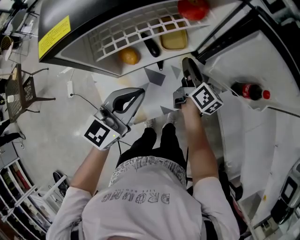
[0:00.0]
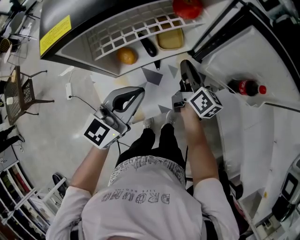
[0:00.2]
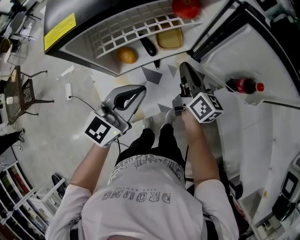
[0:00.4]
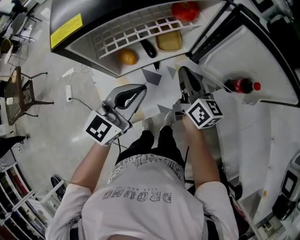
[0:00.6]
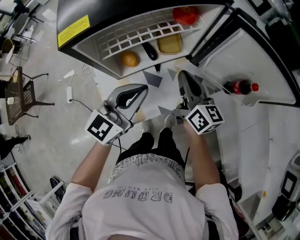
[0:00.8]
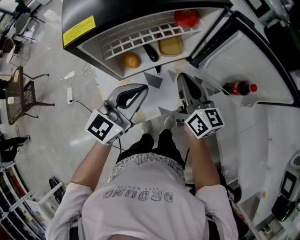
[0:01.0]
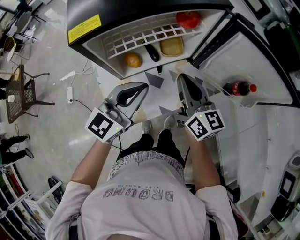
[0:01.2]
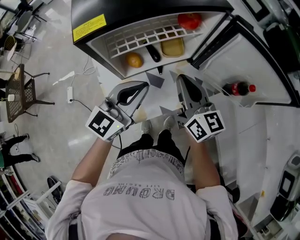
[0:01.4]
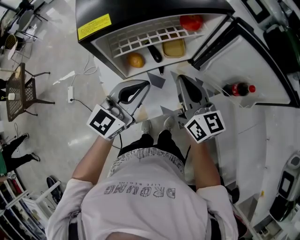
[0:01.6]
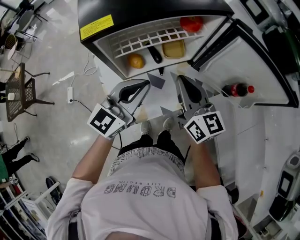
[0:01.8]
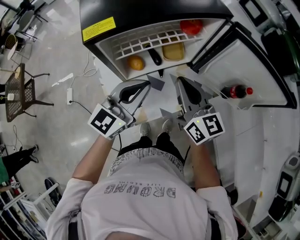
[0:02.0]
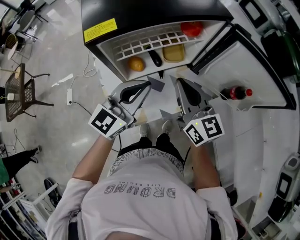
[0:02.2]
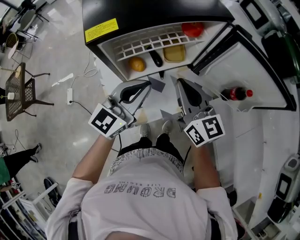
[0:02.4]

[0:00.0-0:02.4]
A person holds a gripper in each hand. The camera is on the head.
0.0 to 1.2 s: The left gripper heads upward, covering some 5 cm; the right gripper heads upward and backward, covering about 20 cm, and rotates some 30 degrees.
1.2 to 2.4 s: The right gripper shifts by roughly 5 cm.

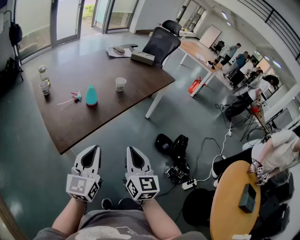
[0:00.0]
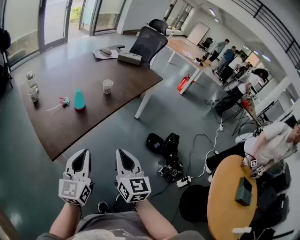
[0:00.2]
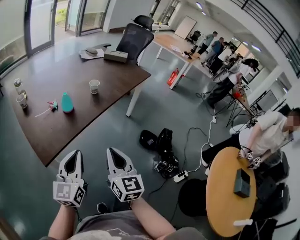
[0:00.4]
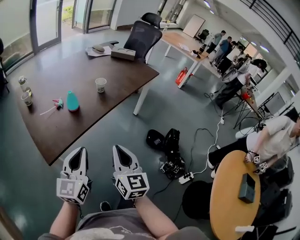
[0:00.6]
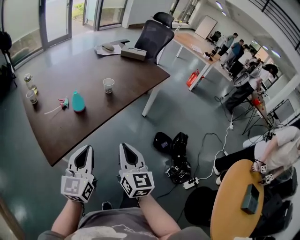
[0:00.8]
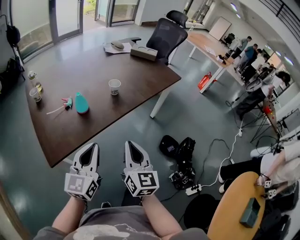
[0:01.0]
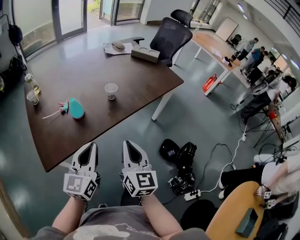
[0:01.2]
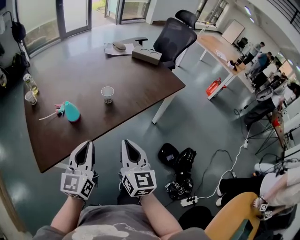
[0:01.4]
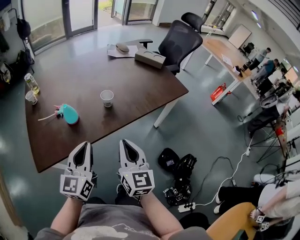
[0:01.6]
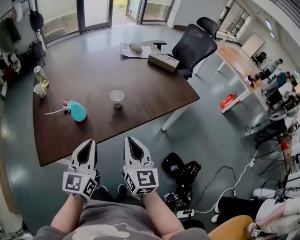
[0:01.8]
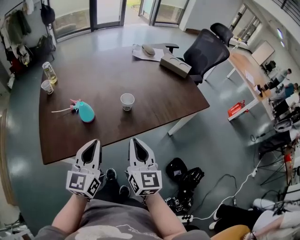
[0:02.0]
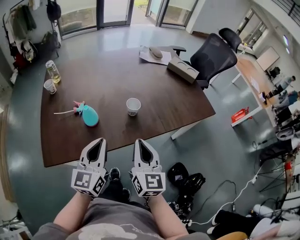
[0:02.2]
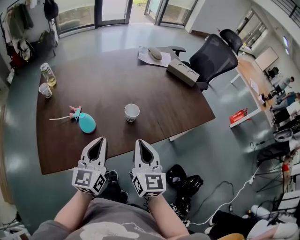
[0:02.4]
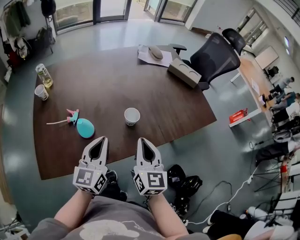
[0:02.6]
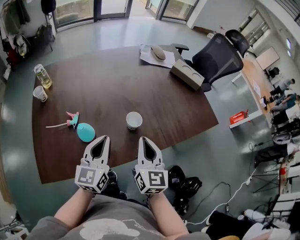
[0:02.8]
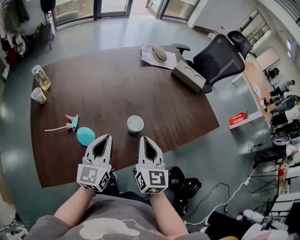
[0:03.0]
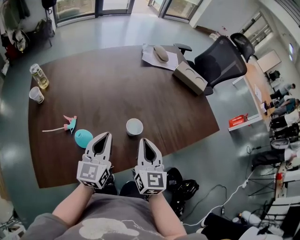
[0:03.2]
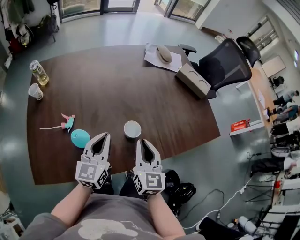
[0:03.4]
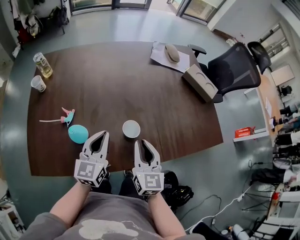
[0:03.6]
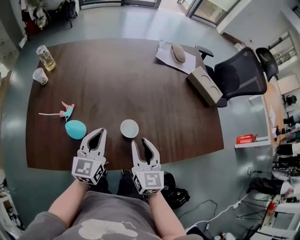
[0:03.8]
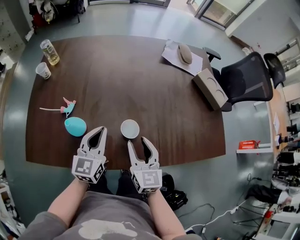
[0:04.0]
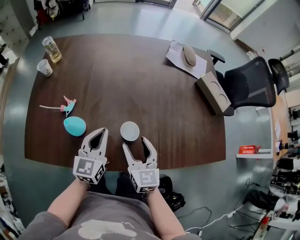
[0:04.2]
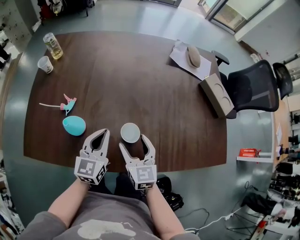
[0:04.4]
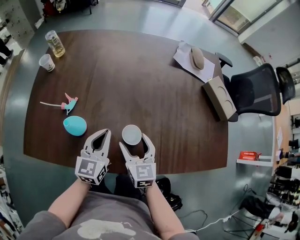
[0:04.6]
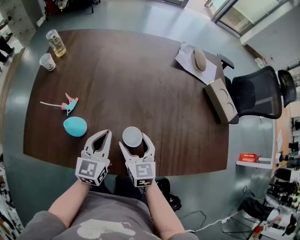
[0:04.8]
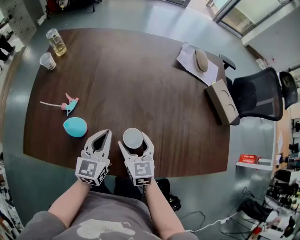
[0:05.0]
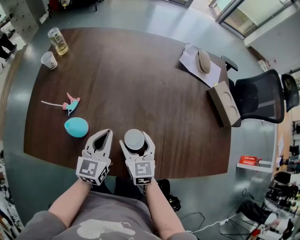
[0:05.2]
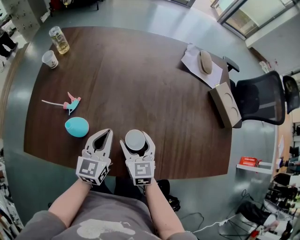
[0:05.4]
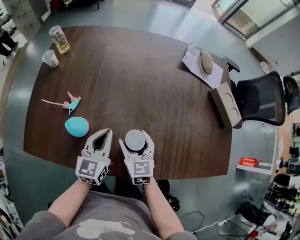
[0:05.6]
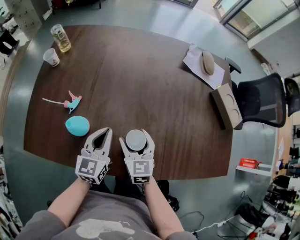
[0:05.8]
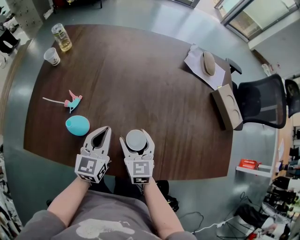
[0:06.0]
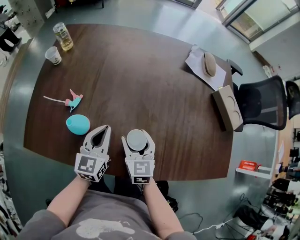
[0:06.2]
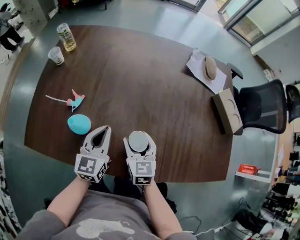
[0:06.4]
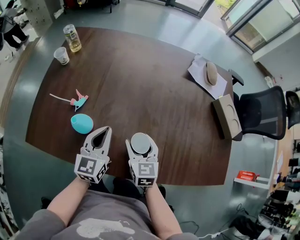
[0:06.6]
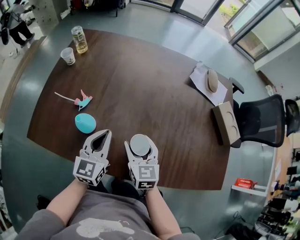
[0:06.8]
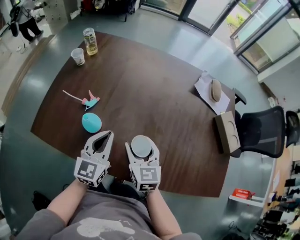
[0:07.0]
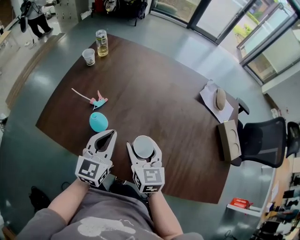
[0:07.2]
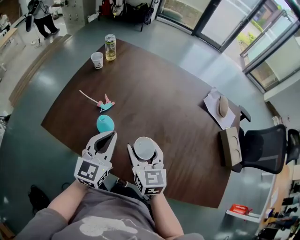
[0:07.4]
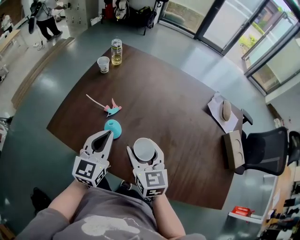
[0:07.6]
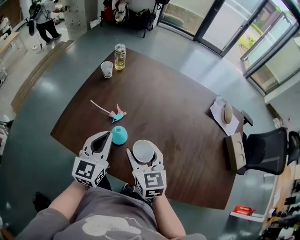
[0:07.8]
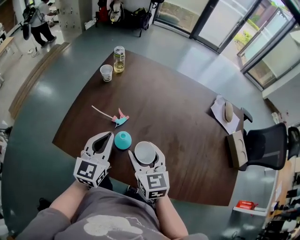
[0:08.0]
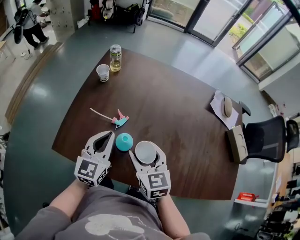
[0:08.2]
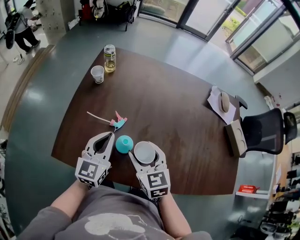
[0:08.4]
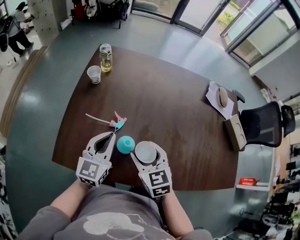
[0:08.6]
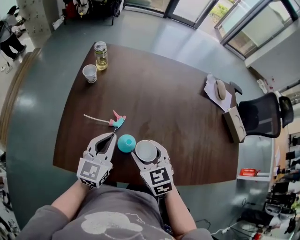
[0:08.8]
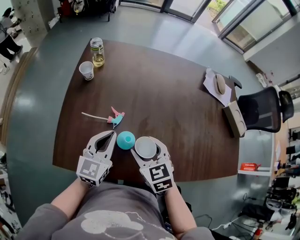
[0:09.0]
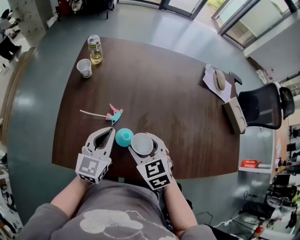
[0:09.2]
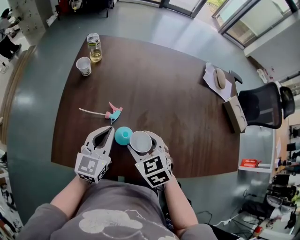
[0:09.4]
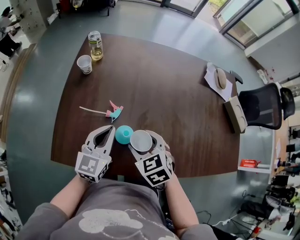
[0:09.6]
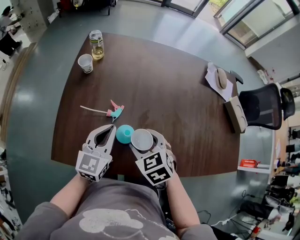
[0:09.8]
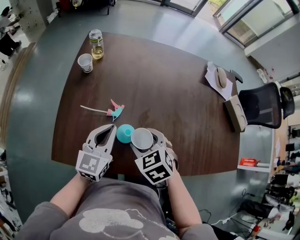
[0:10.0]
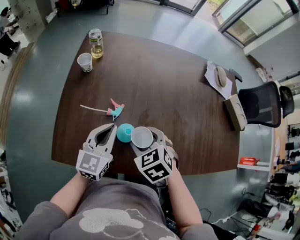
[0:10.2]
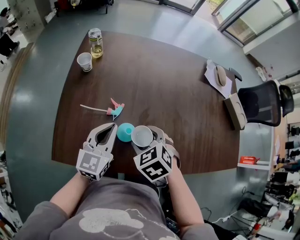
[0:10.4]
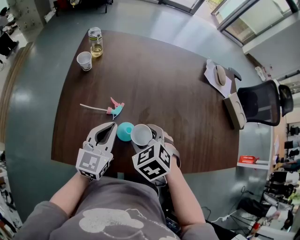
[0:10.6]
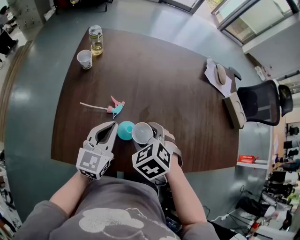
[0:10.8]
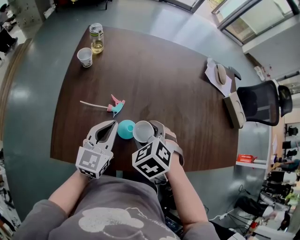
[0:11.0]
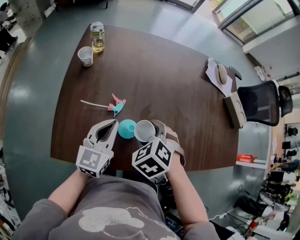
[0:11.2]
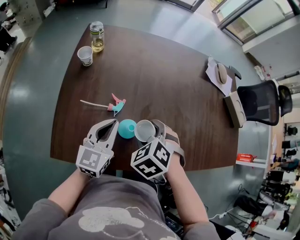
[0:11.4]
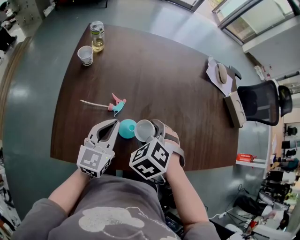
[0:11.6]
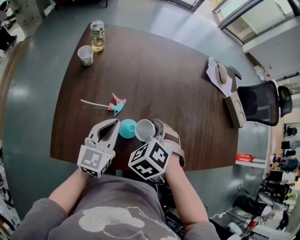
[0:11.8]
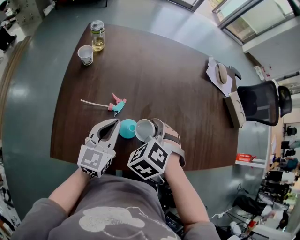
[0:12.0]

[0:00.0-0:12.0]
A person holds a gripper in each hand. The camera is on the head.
0.0 to 1.6 s: The right gripper moves forward, some 25 cm; the left gripper shifts some 25 cm forward and to the right.
1.6 to 3.0 s: Both grippers move forward, about 25 cm.
3.0 to 4.4 s: The two grippers go approximately 10 cm downward and forward. The right gripper rotates roughly 40 degrees, and opens up. The left gripper changes its angle by roughly 20 degrees.
4.4 to 6.0 s: The right gripper ends up approximately 5 cm from where it was.
6.0 to 7.6 s: The left gripper shifts about 15 cm to the left and upward. The right gripper travels upward and to the left by some 15 cm, and swivels some 20 degrees.
7.6 to 9.0 s: The right gripper moves to the left, roughly 10 cm, and swivels about 20 degrees; the left gripper heads forward and to the left, covering approximately 10 cm, and changes its angle by roughly 20 degrees.
9.0 to 10.4 s: The right gripper swivels approximately 20 degrees.
10.4 to 12.0 s: The right gripper rotates roughly 20 degrees.

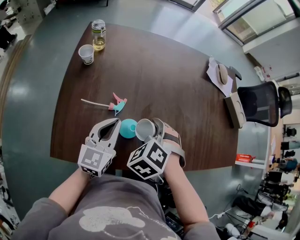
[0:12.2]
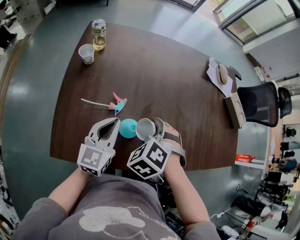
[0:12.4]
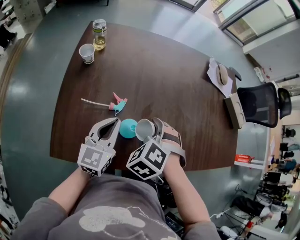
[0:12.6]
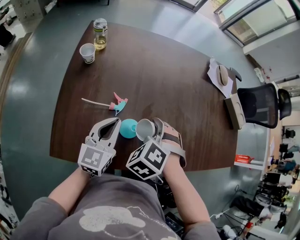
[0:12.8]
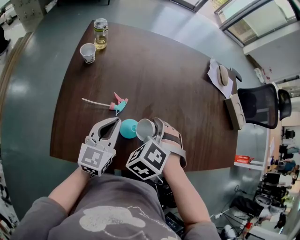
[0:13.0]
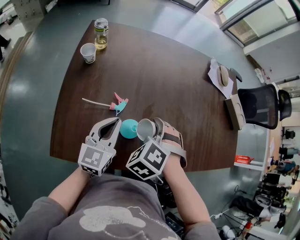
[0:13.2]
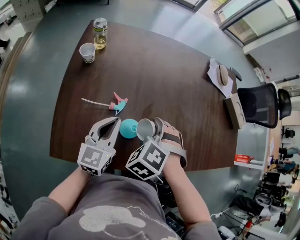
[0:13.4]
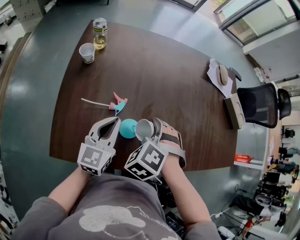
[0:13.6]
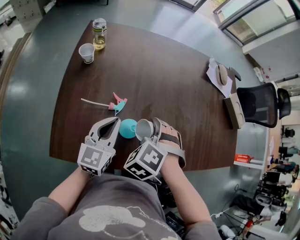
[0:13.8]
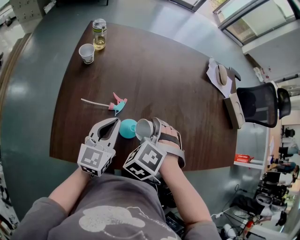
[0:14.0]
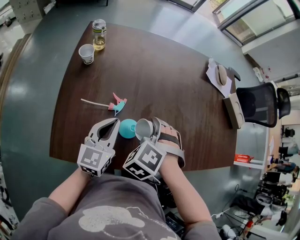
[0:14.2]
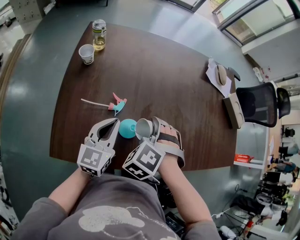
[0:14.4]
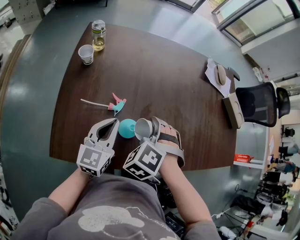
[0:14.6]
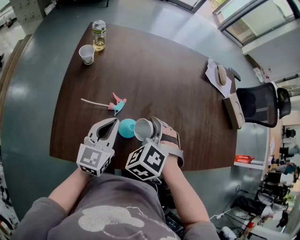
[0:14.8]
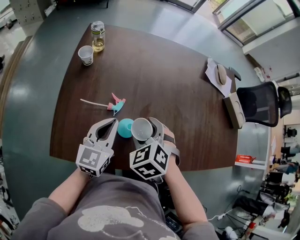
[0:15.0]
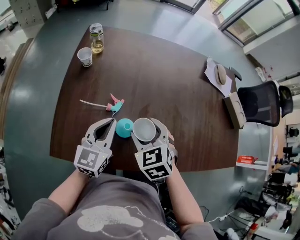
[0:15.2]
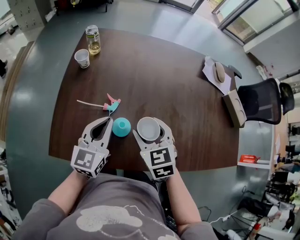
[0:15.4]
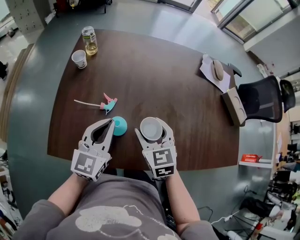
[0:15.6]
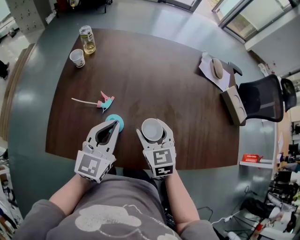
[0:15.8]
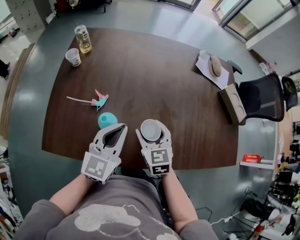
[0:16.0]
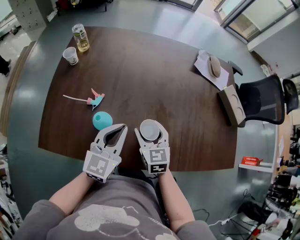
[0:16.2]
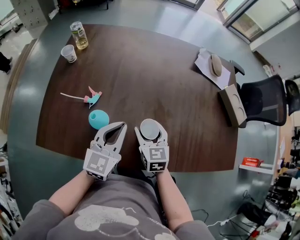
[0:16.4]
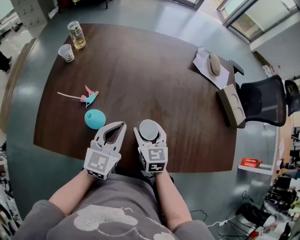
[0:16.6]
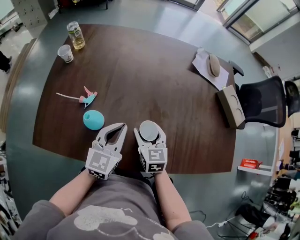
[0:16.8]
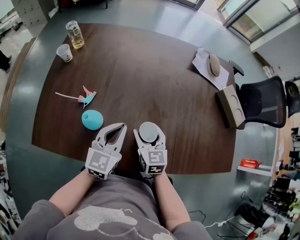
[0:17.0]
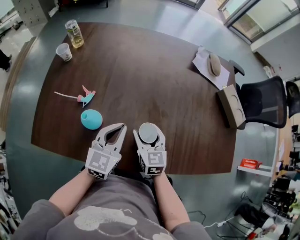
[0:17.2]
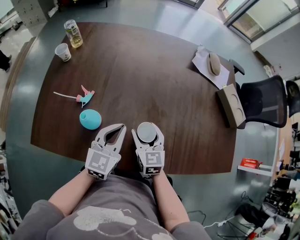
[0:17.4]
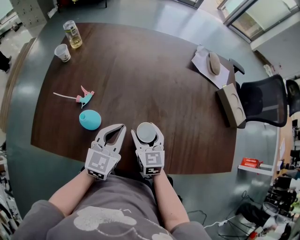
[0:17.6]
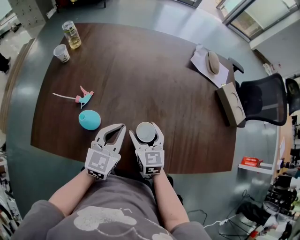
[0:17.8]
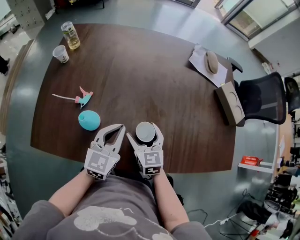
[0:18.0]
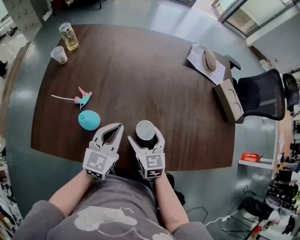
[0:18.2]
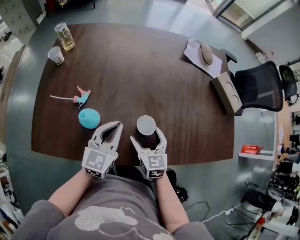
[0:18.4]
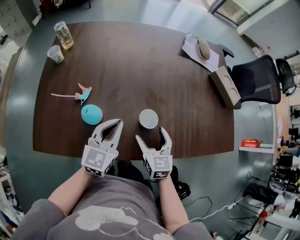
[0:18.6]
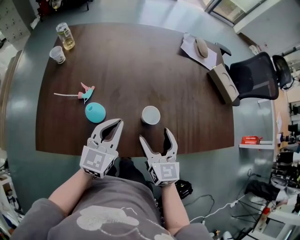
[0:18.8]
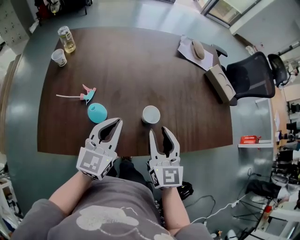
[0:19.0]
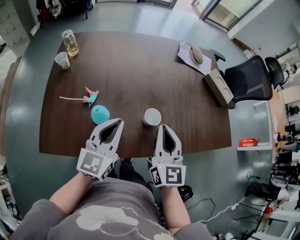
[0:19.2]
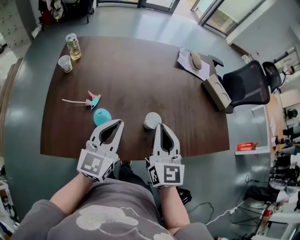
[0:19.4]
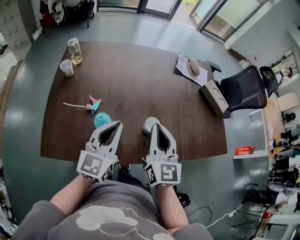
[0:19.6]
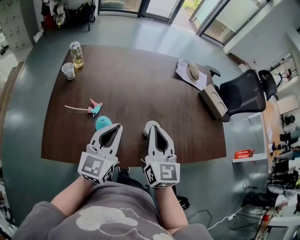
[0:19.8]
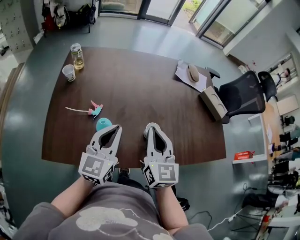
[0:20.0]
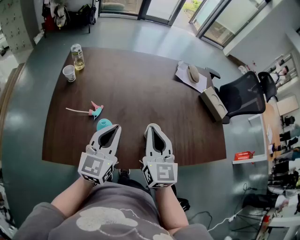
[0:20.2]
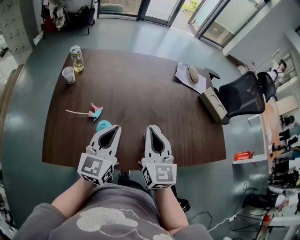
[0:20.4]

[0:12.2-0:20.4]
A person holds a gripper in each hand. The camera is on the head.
12.2 to 13.8 s: The grippers stay close to where they were, moving slightly.
13.8 to 15.4 s: The right gripper swivels roughly 50 degrees.
15.4 to 17.2 s: The left gripper is displaced to the right by approximately 20 cm. Meanwhile the right gripper moves to the right and downward, roughly 20 cm.
17.2 to 18.8 s: The right gripper is displaced backward and upward by about 10 cm, while the left gripper moves some 5 cm.
18.8 to 20.4 s: Both grippers travel together upward and to the left, approximately 10 cm. The right gripper closes.

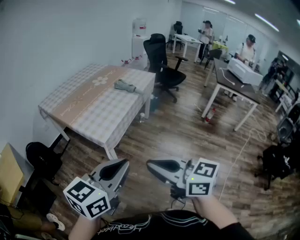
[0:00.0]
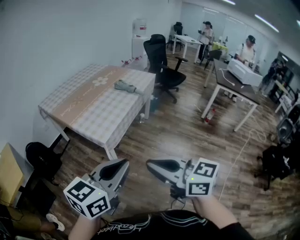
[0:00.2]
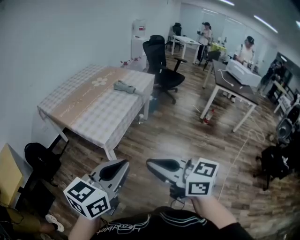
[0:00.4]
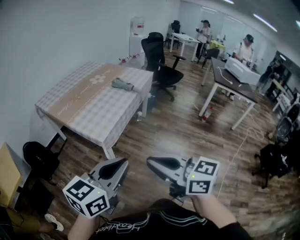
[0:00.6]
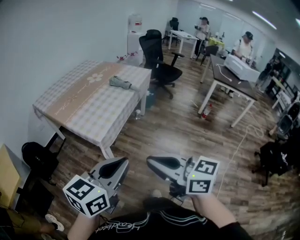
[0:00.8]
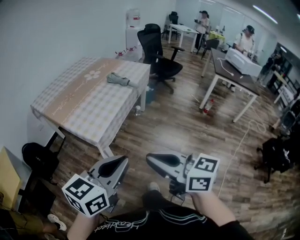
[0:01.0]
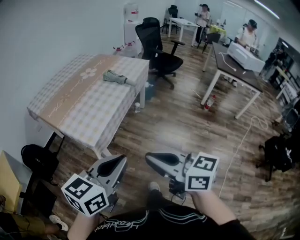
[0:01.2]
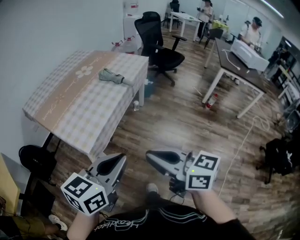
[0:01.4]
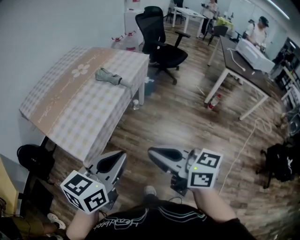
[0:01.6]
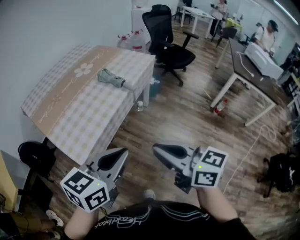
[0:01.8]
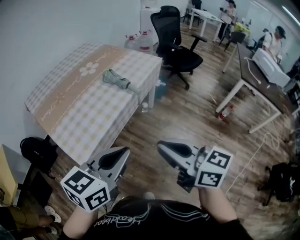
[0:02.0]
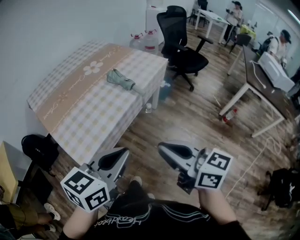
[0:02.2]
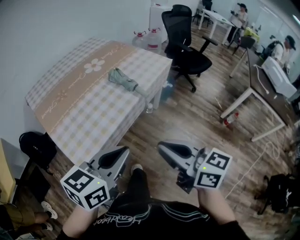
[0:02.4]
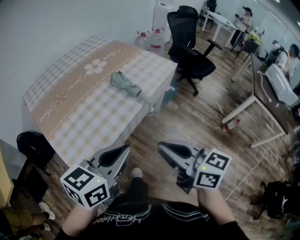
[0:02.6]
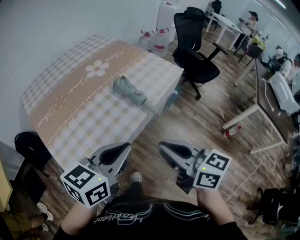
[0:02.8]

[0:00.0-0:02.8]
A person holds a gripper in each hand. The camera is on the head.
0.0 to 1.4 s: Both grippers travel together forward and to the right, roughly 20 cm.
1.4 to 2.8 s: The two grippers go roughly 35 cm forward.
